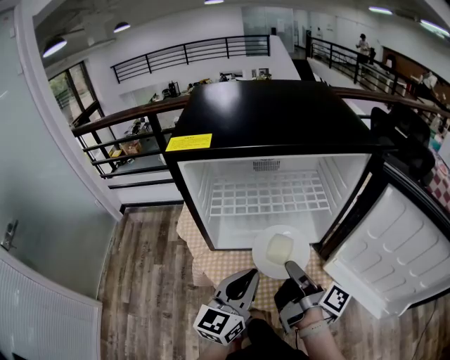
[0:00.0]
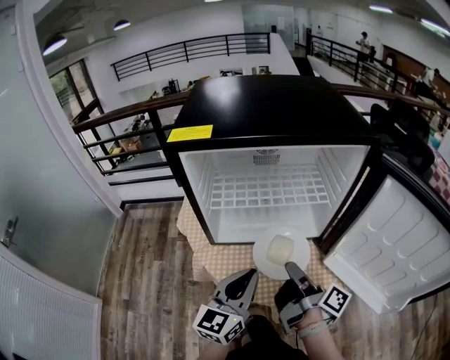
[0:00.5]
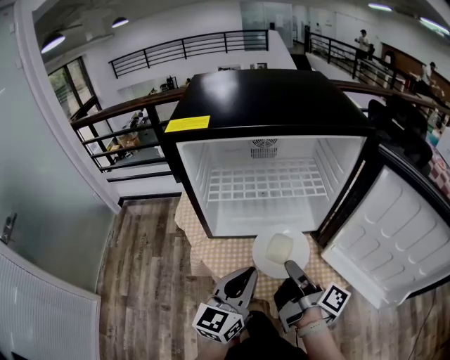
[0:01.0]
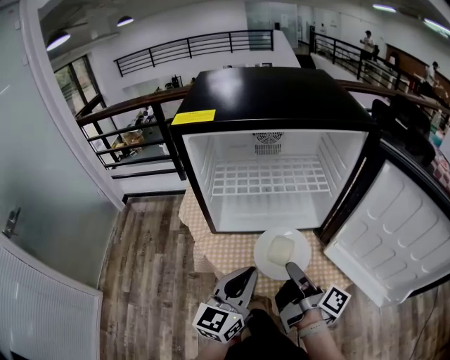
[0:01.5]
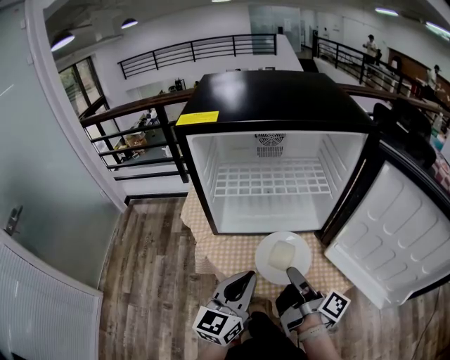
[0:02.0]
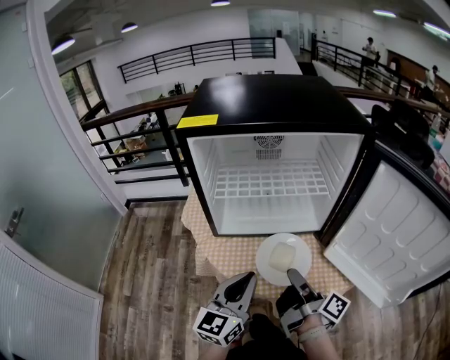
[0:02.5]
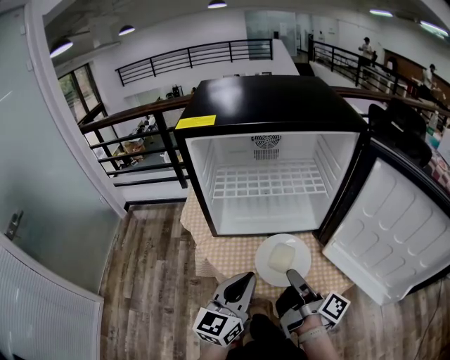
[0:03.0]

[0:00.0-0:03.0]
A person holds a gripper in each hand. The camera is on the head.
0:00.0 to 0:03.0: The grippers move only a little.

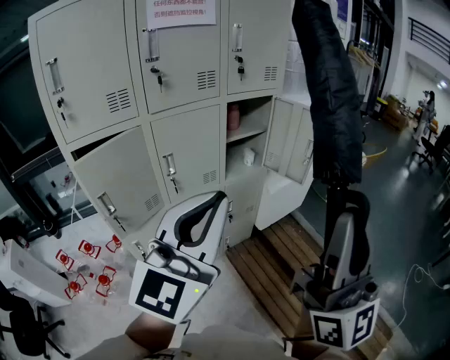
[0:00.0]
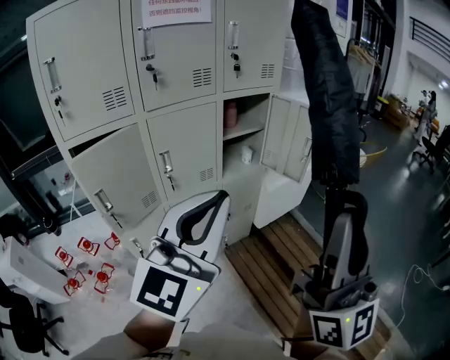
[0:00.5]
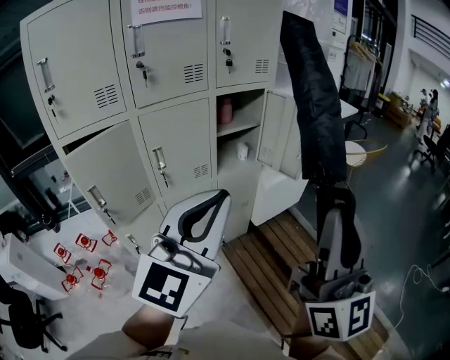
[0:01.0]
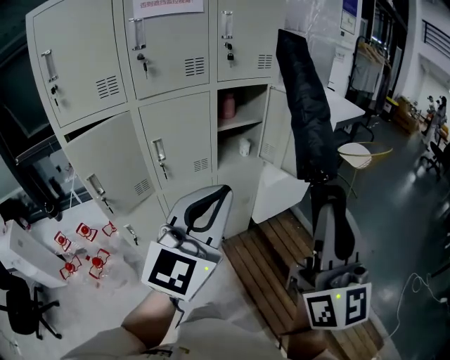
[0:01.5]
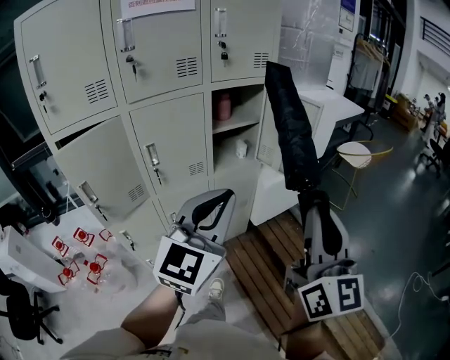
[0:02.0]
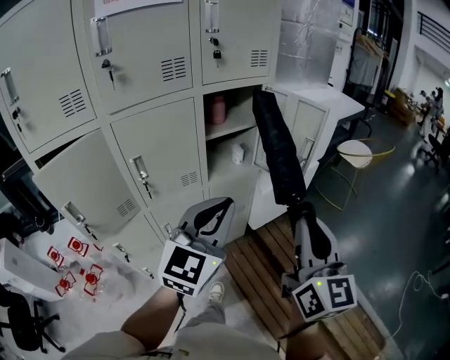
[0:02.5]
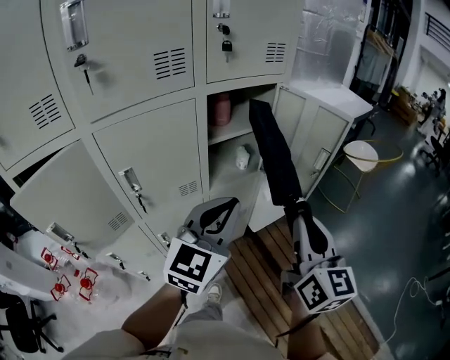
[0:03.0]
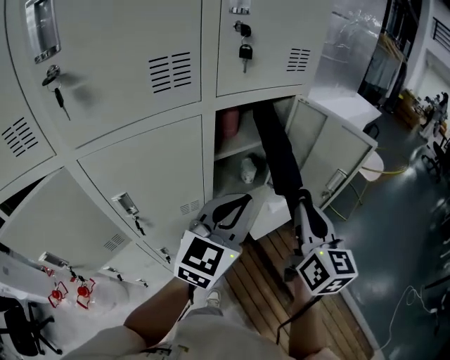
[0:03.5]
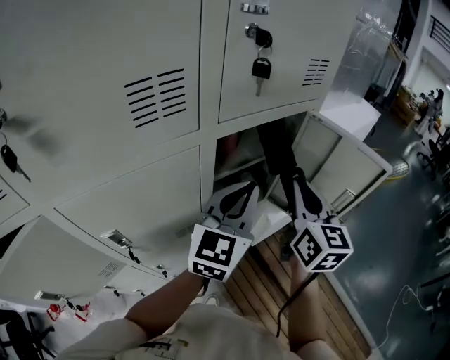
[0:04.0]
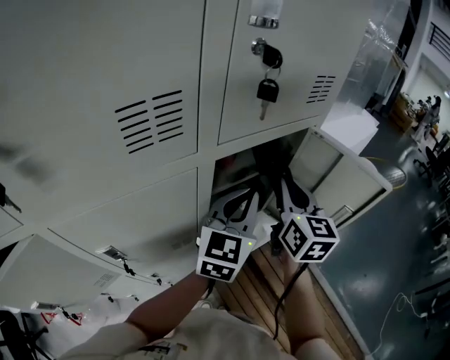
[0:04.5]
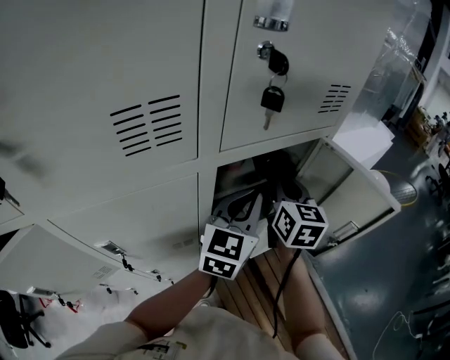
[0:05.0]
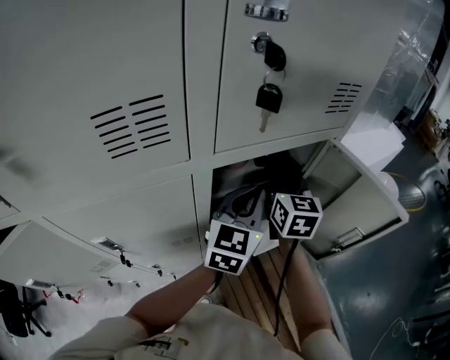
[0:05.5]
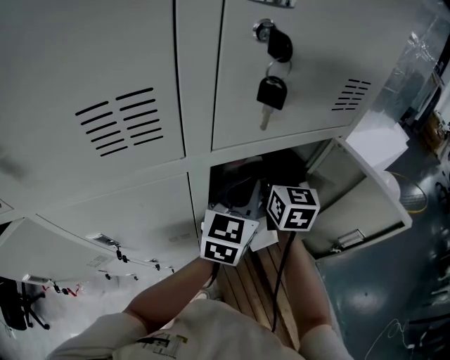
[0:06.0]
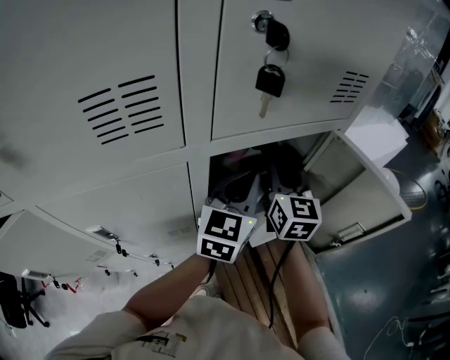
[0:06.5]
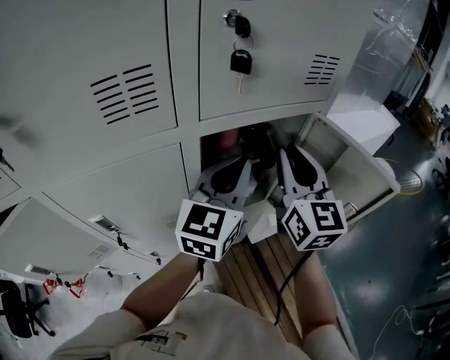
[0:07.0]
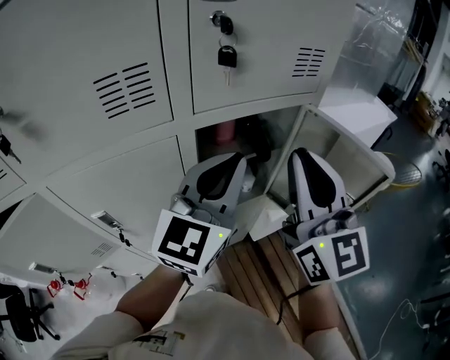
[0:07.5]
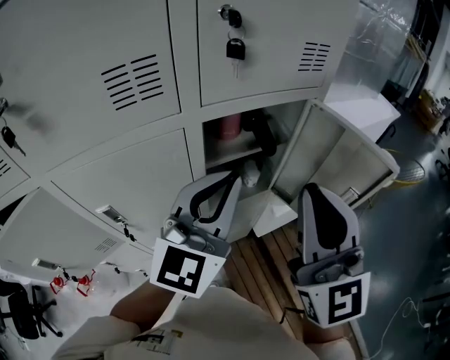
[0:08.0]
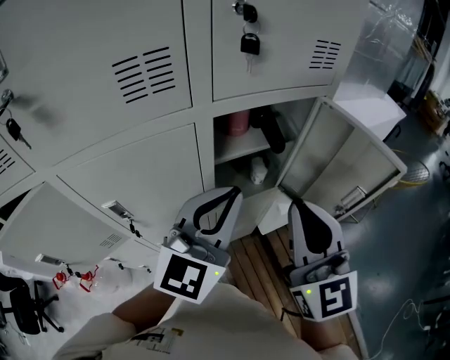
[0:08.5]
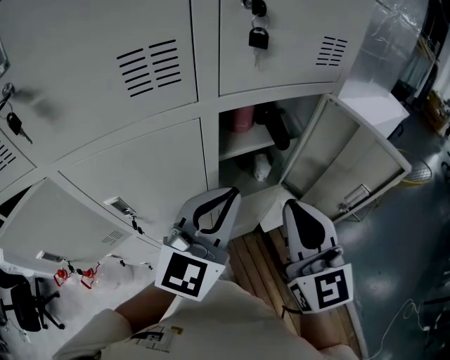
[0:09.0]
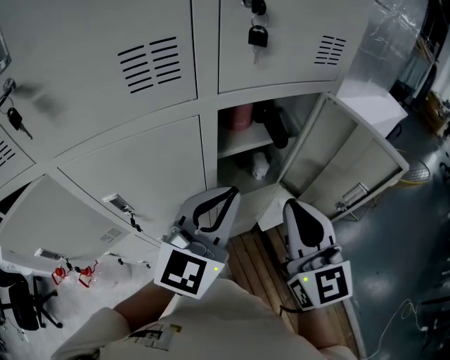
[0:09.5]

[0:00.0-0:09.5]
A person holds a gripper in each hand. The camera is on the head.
0:00.0 to 0:02.0: The grippers both shift forward, downward and to the right by about 15 cm. The right gripper swivels about 20 degrees.
0:02.0 to 0:04.0: The two grippers travel together, forward, approximately 40 cm. The right gripper turns by some 20 degrees.
0:04.0 to 0:05.5: The right gripper shifts approximately 15 cm forward and downward, while the left gripper heads forward, covering some 10 cm.
0:05.5 to 0:07.5: The right gripper travels backward and upward by about 25 cm, and swivels roughly 30 degrees, while the left gripper travels upward and backward by approximately 15 cm.
0:07.5 to 0:09.5: The grippers both shift downward and backward by about 10 cm.

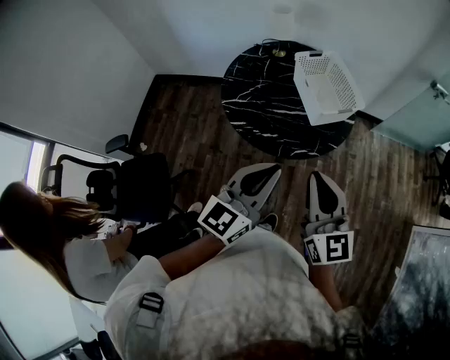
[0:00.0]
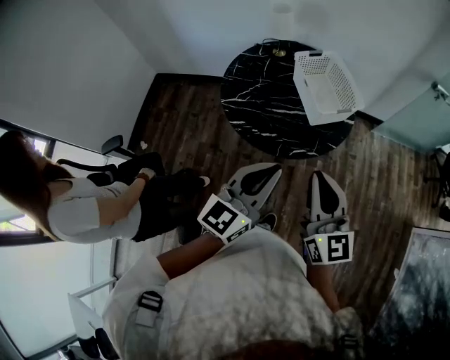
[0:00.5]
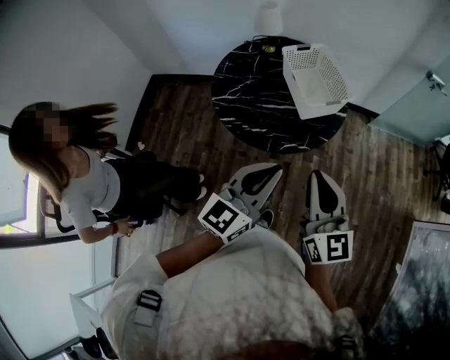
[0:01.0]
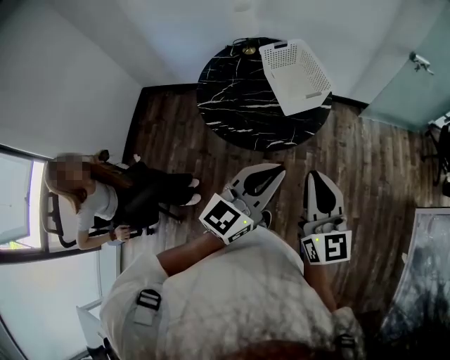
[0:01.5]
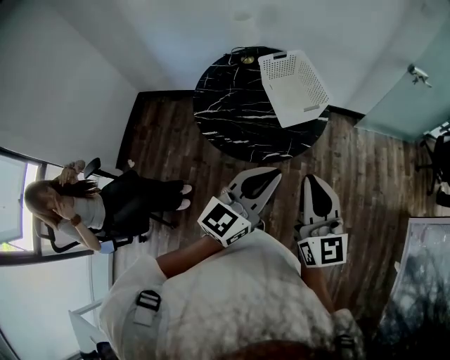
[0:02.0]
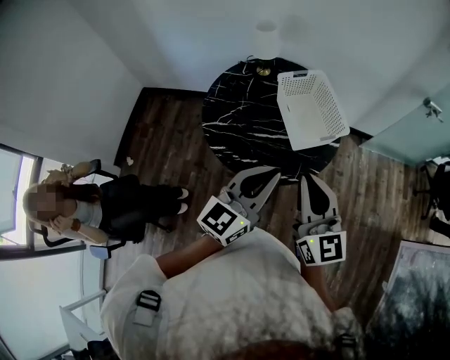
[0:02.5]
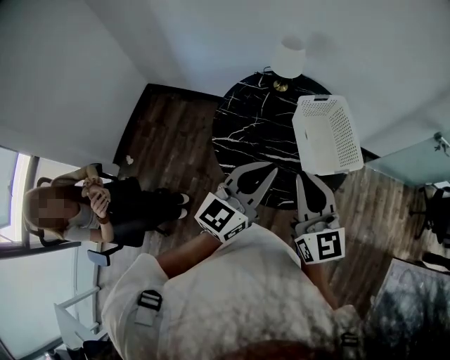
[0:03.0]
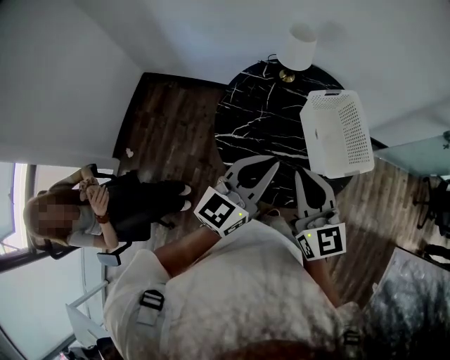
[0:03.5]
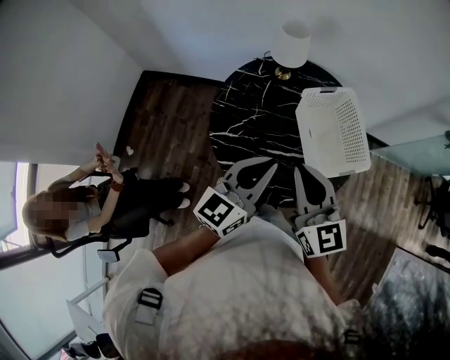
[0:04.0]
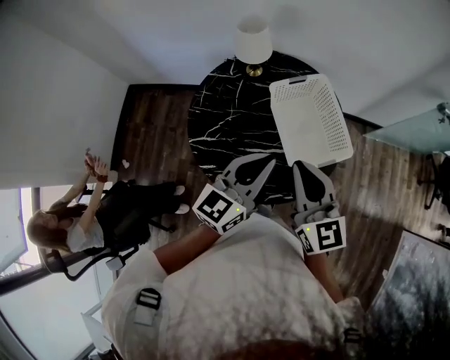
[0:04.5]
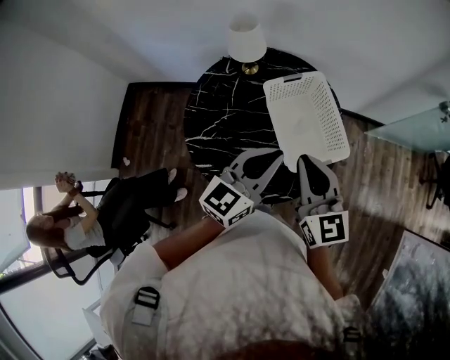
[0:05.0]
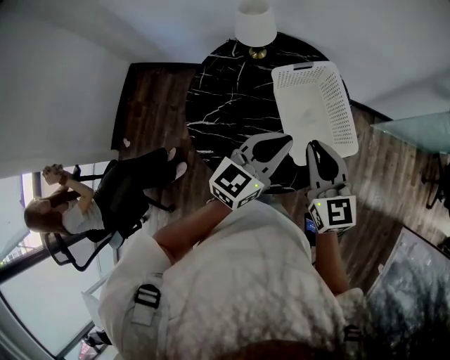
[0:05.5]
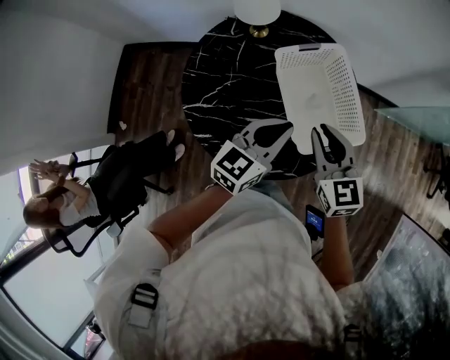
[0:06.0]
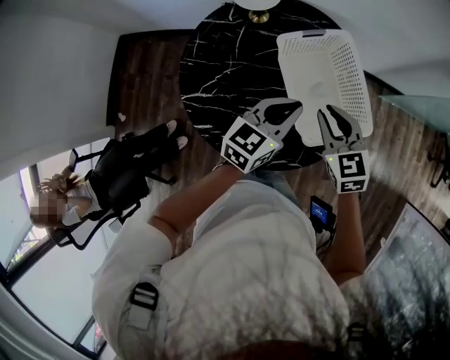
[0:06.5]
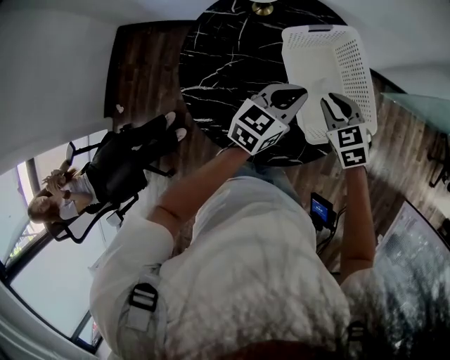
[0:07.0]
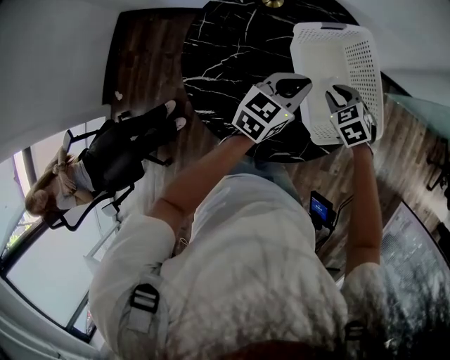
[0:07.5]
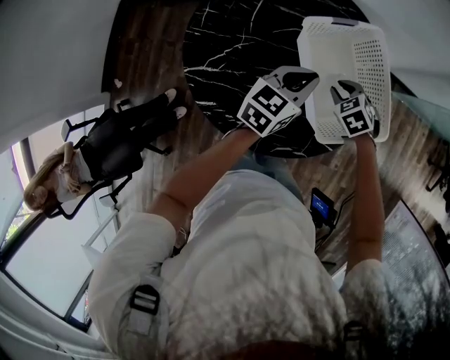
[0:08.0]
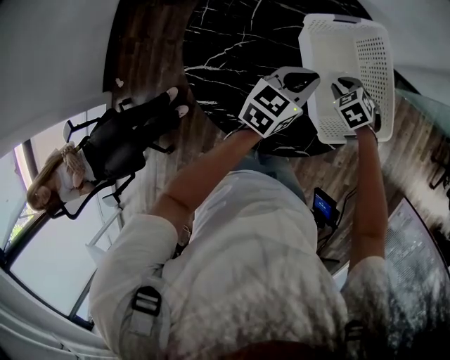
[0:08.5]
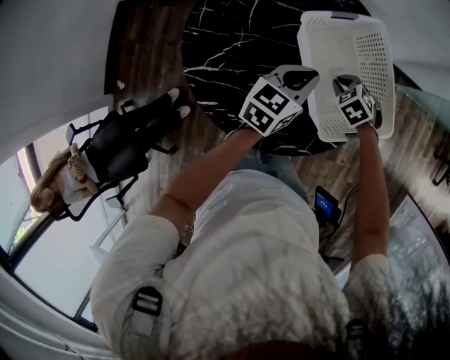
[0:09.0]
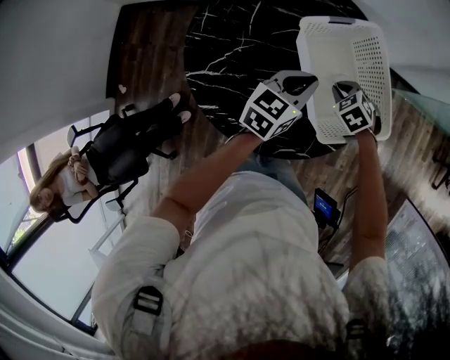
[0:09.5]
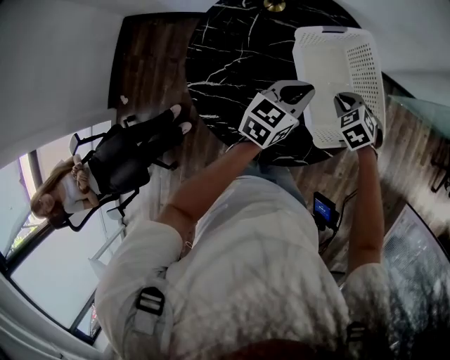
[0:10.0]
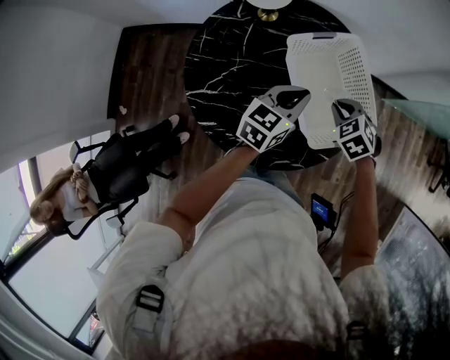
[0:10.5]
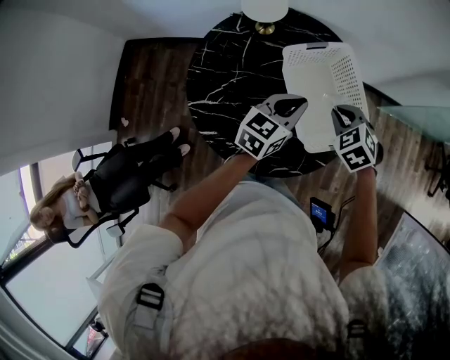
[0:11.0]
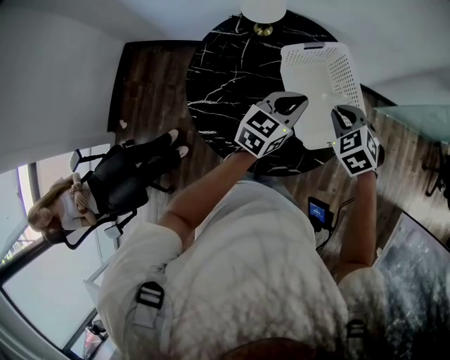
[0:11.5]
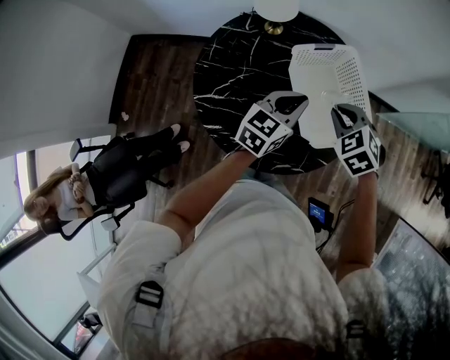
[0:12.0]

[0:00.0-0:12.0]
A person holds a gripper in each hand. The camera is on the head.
0:00.0 to 0:02.0: The grippers both shift to the right by about 10 cm.
0:02.0 to 0:04.0: The two grippers go some 35 cm forward and to the left.
0:04.0 to 0:06.0: The left gripper moves to the right, forward and downward, roughly 20 cm, while the right gripper travels to the right, downward and forward by some 20 cm.
0:06.0 to 0:08.0: The right gripper shifts approximately 25 cm downward and forward, and tilts its fingers some 40 degrees downward. Meanwhile the left gripper shifts about 15 cm downward and forward.
0:08.0 to 0:10.0: The grippers stay close to where they were, moving slightly.
0:10.0 to 0:12.0: The left gripper moves upward, approximately 5 cm. Meanwhile the right gripper moves upward, about 15 cm.

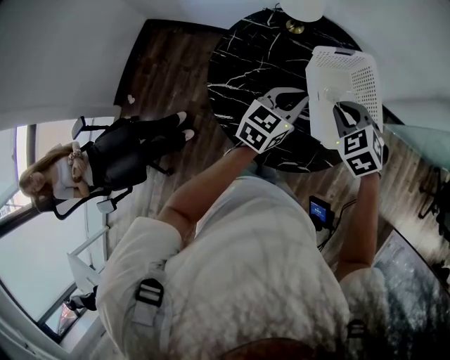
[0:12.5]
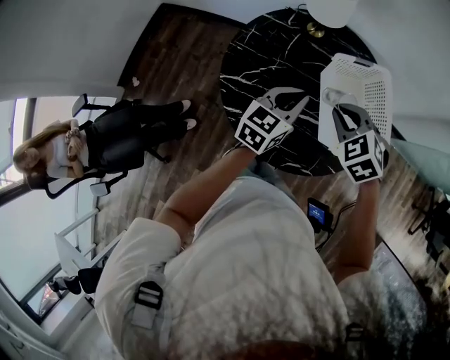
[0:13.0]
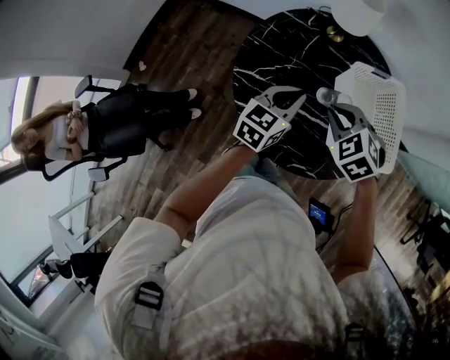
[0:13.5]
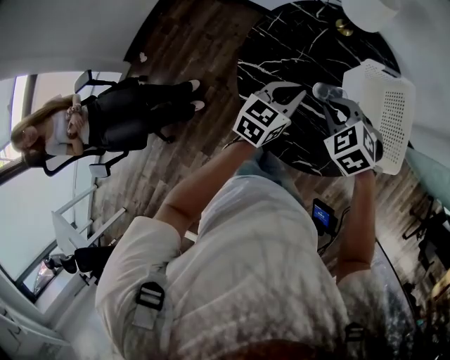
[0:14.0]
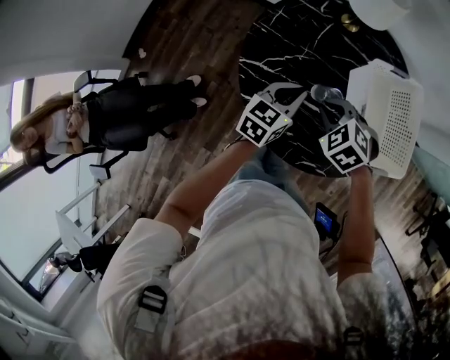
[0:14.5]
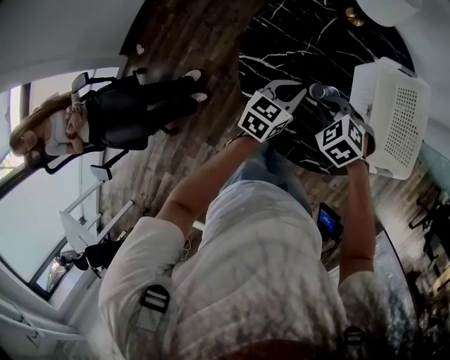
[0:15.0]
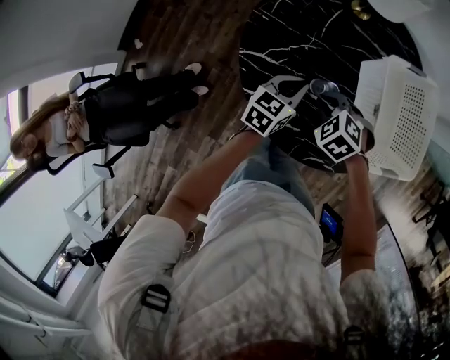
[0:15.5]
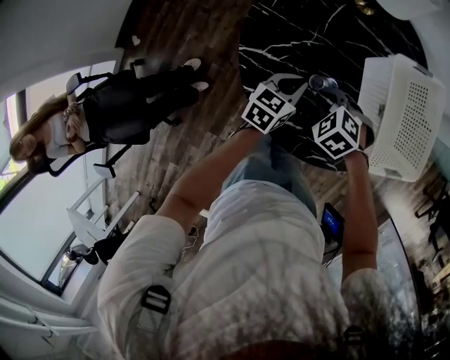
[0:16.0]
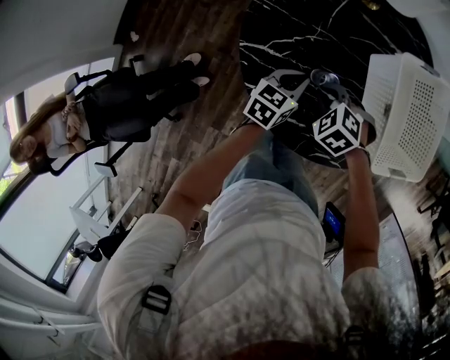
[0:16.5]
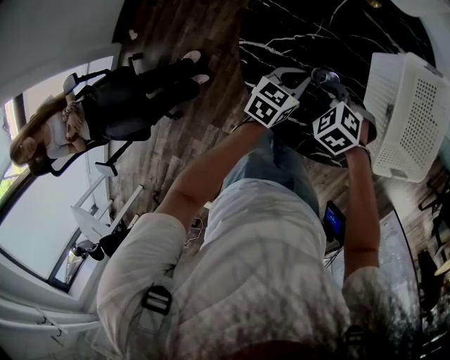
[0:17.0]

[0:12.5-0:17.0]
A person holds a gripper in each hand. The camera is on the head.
0:12.5 to 0:14.5: Both grippers move to the left and downward, some 20 cm. The right gripper swivels roughly 20 degrees.
0:14.5 to 0:17.0: Both grippers travel together downward, some 15 cm.
